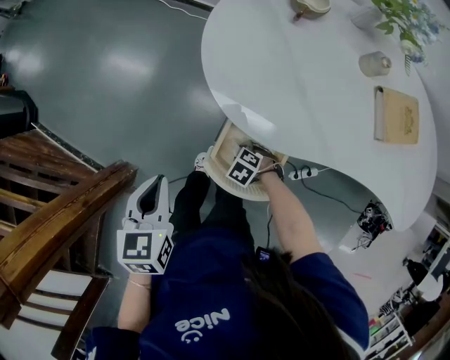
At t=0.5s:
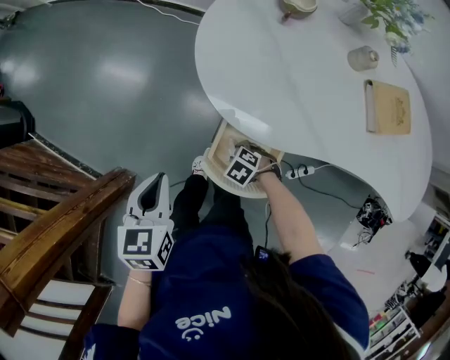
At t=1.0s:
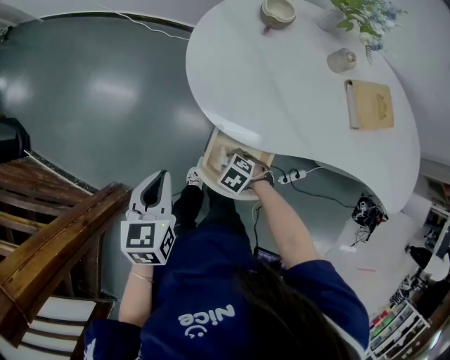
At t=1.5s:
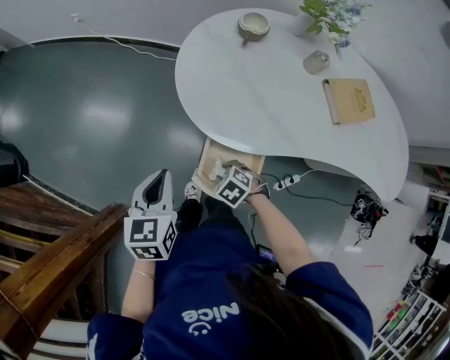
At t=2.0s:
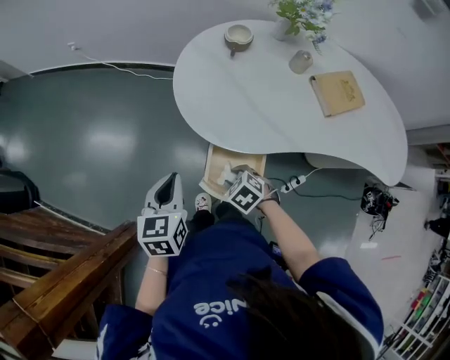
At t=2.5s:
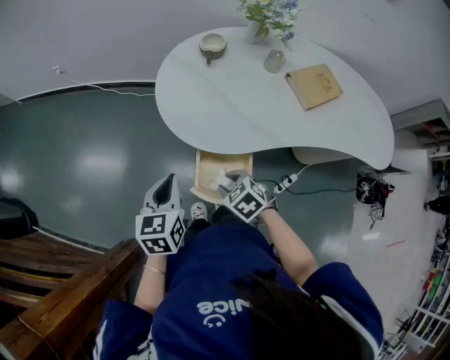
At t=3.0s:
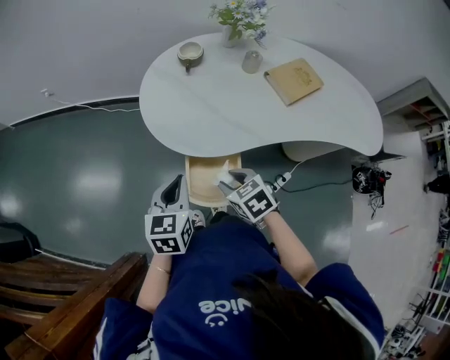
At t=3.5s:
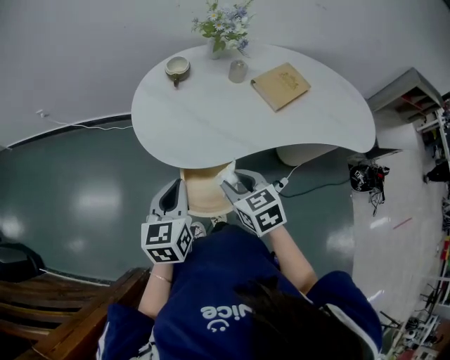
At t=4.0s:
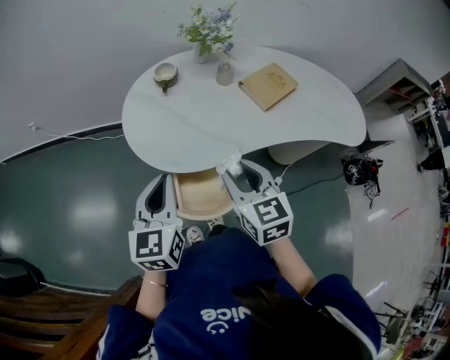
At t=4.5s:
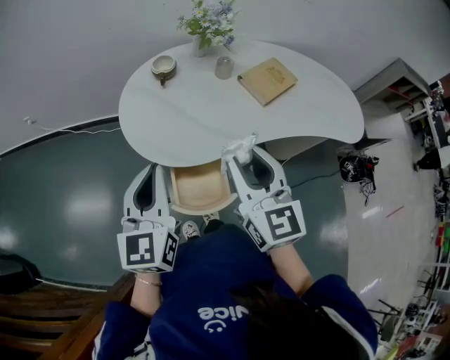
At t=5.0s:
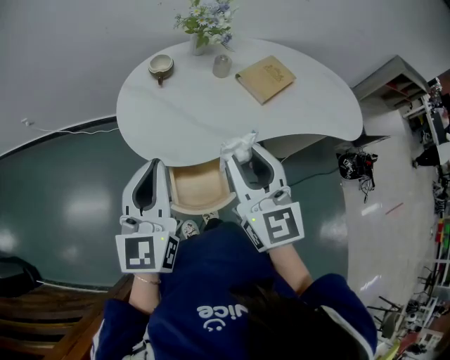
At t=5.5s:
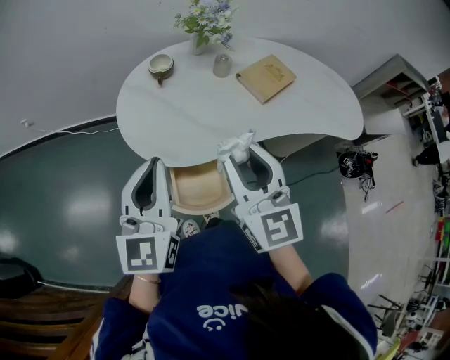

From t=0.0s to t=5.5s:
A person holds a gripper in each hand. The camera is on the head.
From t=0.0s to t=2.0s: The left gripper changes place by some 5 cm. Meanwhile the right gripper is displaced upward by about 20 cm, and rotates roughly 30 degrees.
From t=2.0s to t=3.5s: The right gripper is displaced upward by some 15 cm, and changes its angle by about 50 degrees; the left gripper moves approximately 10 cm.
From t=3.5s to t=5.5s: Both grippers travel together upward, about 15 cm. The left gripper swivels approximately 30 degrees. Meanwhile the right gripper angles its fingers upward, by some 40 degrees.

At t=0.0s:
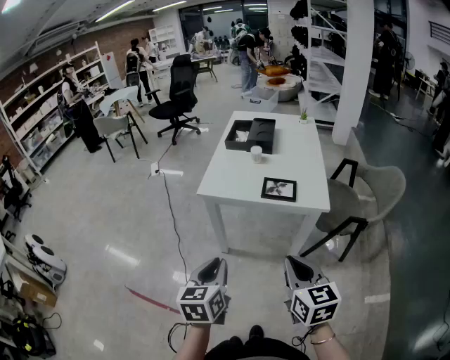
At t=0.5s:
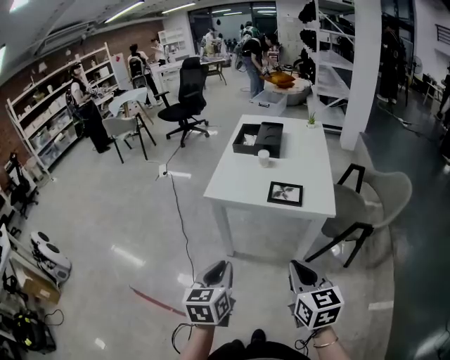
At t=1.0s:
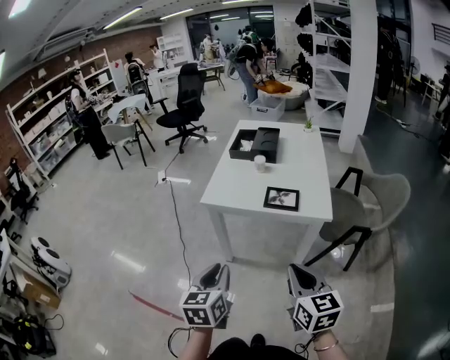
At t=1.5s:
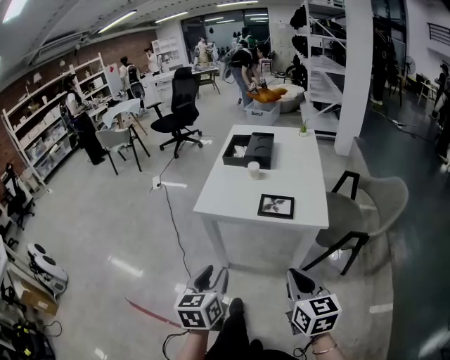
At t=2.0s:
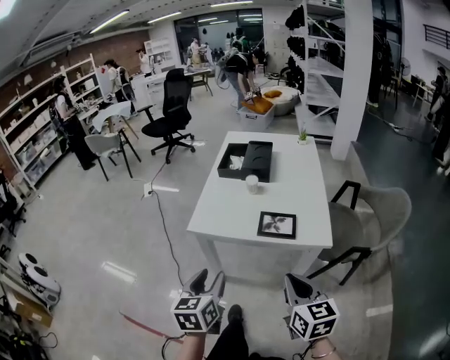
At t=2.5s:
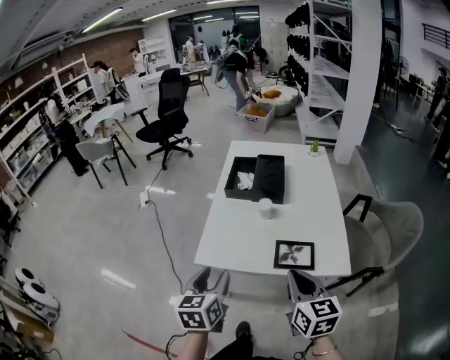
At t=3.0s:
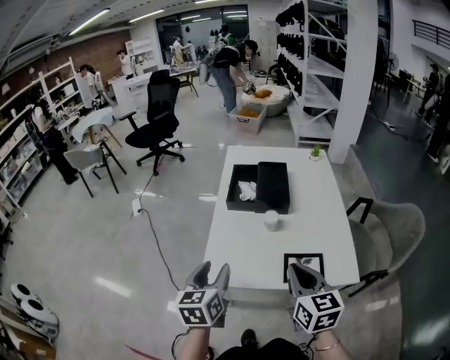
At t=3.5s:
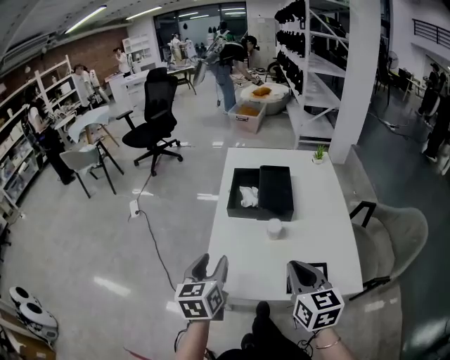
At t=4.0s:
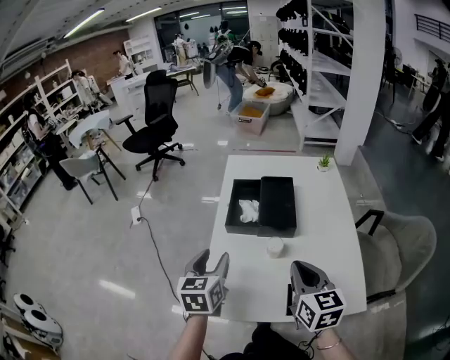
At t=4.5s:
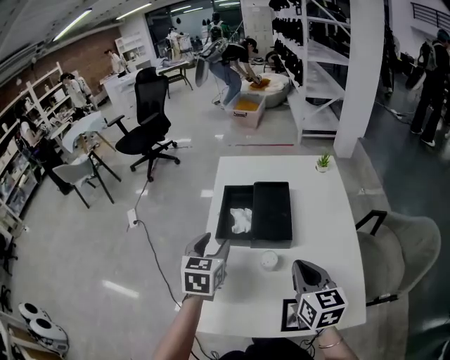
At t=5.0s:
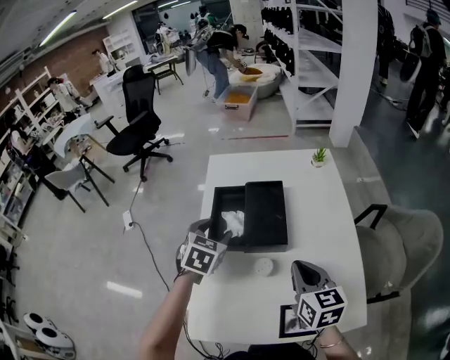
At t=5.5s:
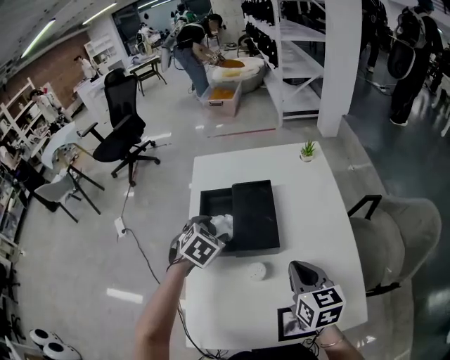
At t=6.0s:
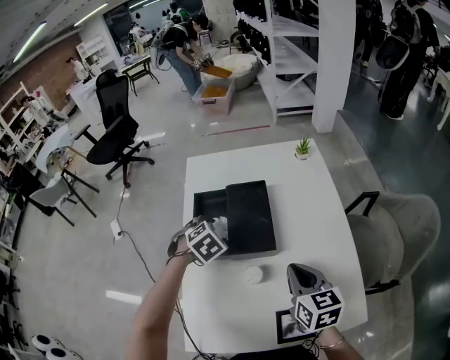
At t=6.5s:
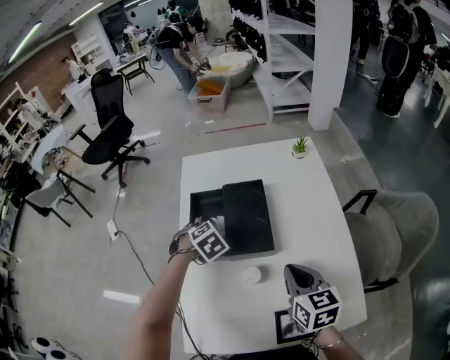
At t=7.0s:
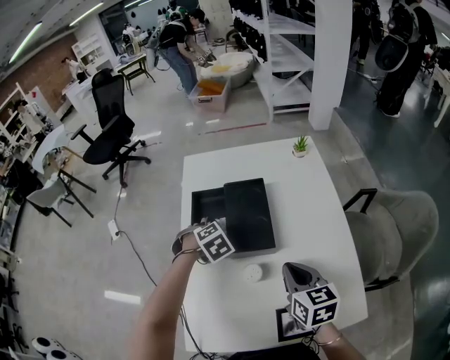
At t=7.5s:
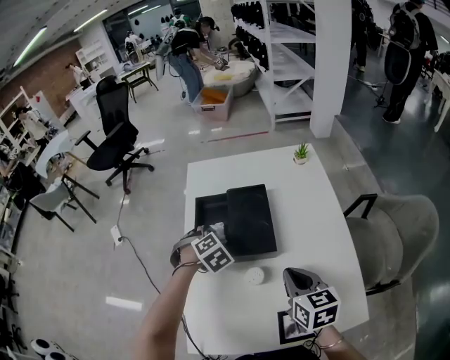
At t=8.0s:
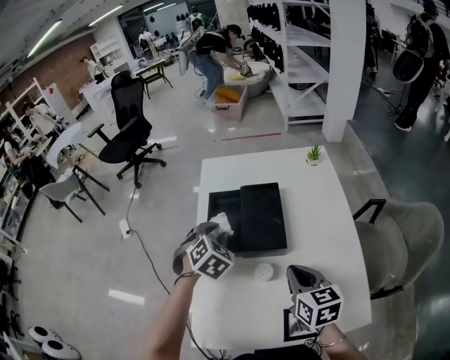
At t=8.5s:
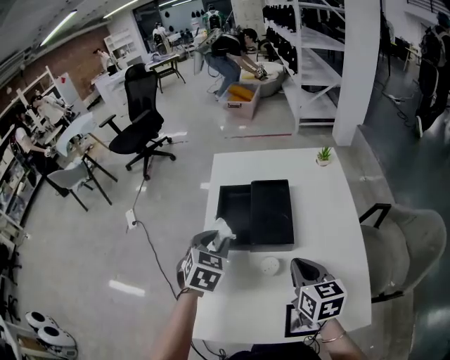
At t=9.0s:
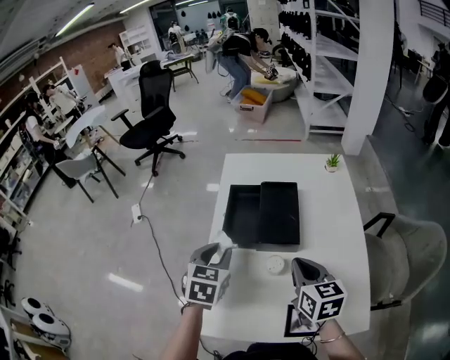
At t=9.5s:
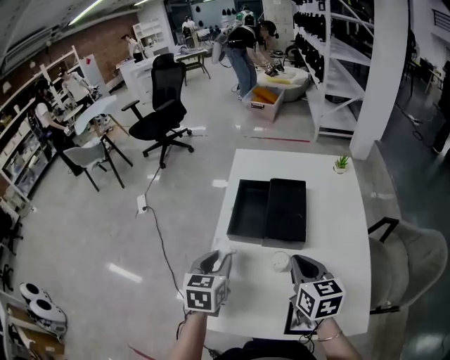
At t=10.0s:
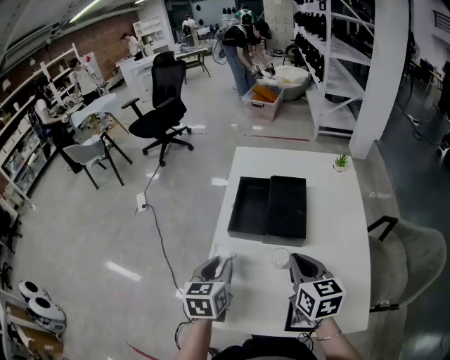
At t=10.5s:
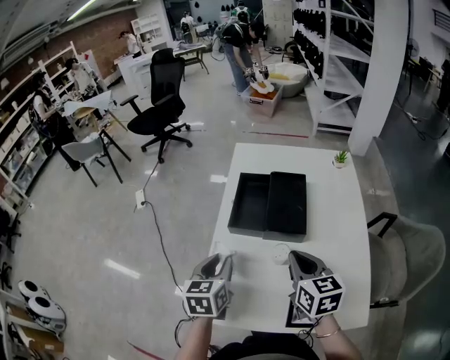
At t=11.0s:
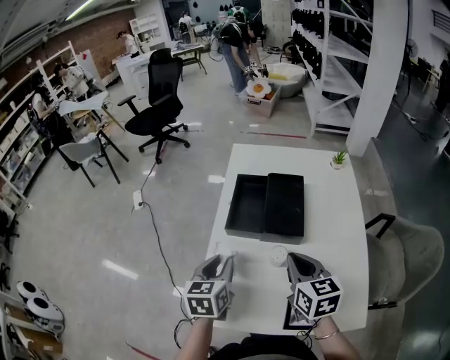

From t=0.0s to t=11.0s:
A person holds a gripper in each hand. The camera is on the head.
From t=0.0s to t=2.0s: Both grippers move forward, some 10 cm. The left gripper opens up.
From t=2.0s to t=3.5s: Both grippers travel together forward, approximately 30 cm.
From t=3.5s to t=5.5s: The left gripper travels forward by some 30 cm, and angles its fingers downward, by about 30 degrees, while the right gripper moves forward and to the right, some 20 cm.
From t=5.5s to t=7.5s: The left gripper turns by approximately 20 degrees, and closes.
From t=7.5s to t=9.0s: The left gripper heads backward, upward and to the left, covering roughly 15 cm, and rotates around the line of its fingers by about 50 degrees, counterclockwise from behind.
From t=9.0s to t=11.0s: The left gripper is displaced backward by roughly 5 cm, and rotates about 20 degrees.

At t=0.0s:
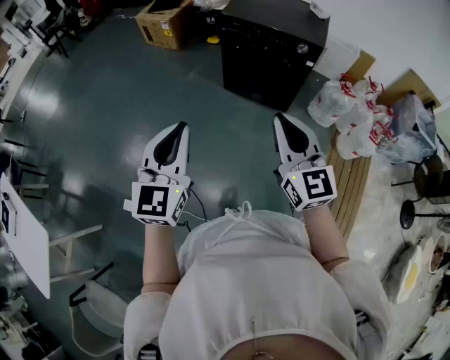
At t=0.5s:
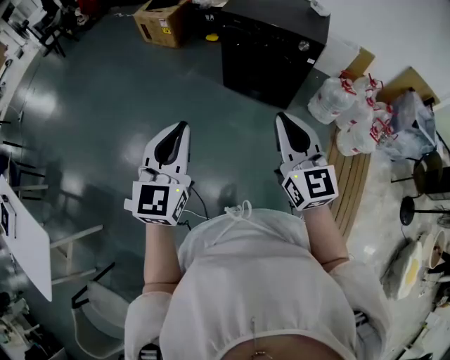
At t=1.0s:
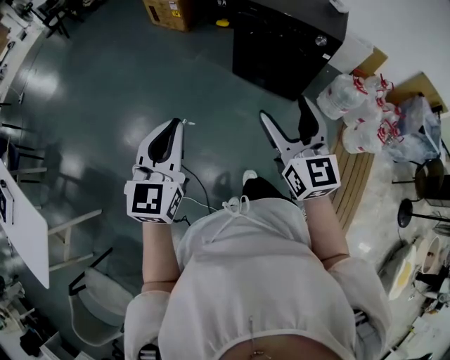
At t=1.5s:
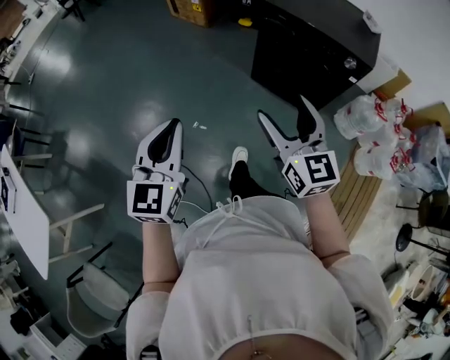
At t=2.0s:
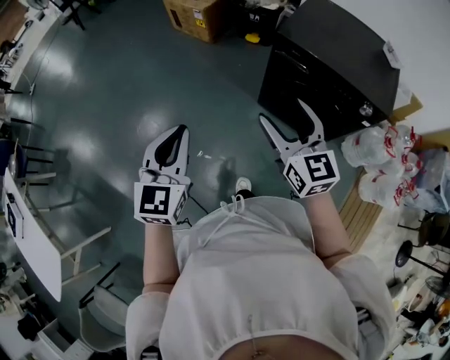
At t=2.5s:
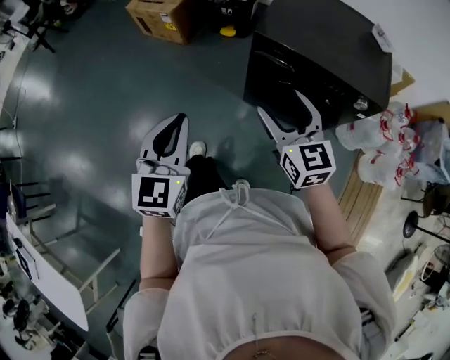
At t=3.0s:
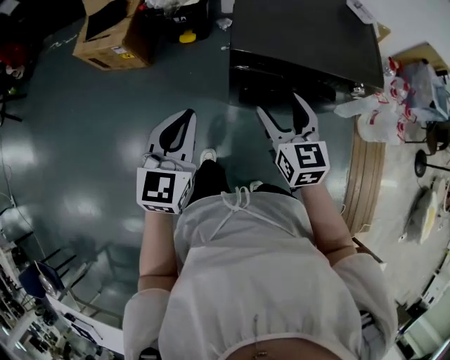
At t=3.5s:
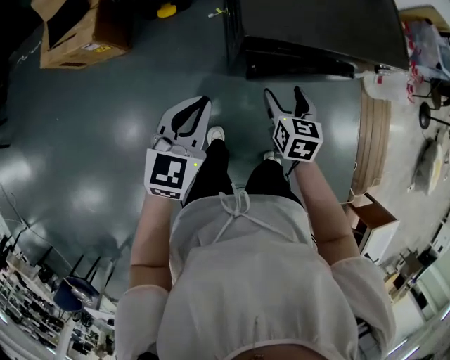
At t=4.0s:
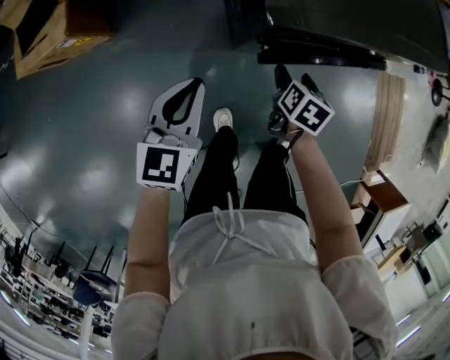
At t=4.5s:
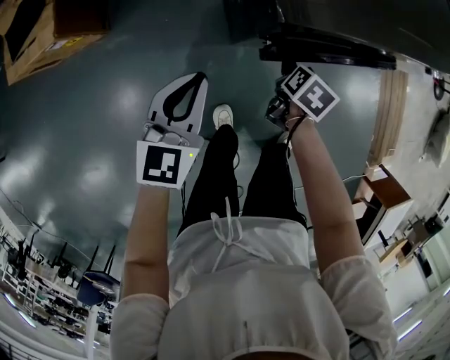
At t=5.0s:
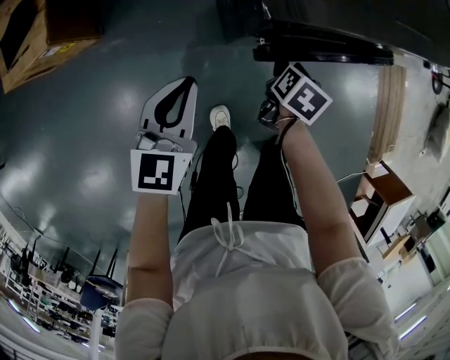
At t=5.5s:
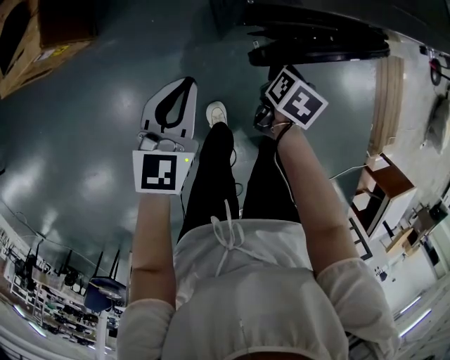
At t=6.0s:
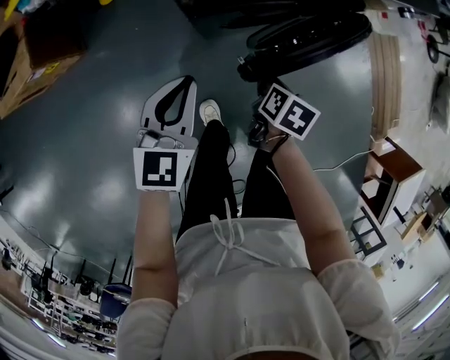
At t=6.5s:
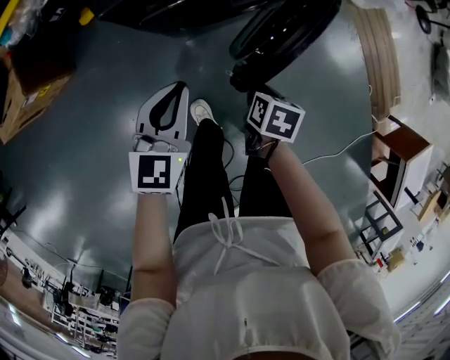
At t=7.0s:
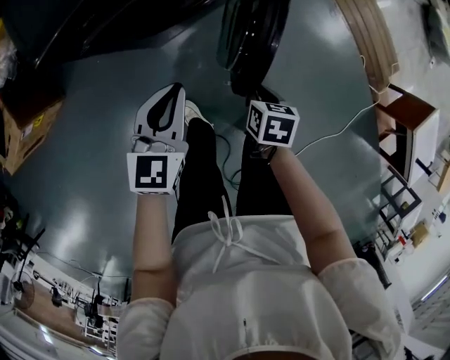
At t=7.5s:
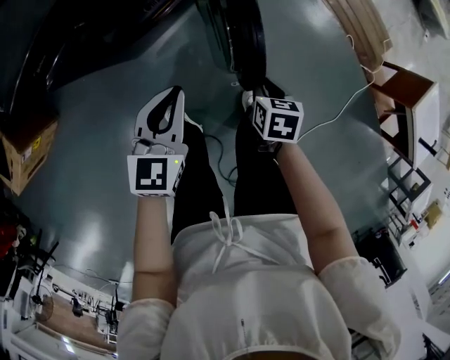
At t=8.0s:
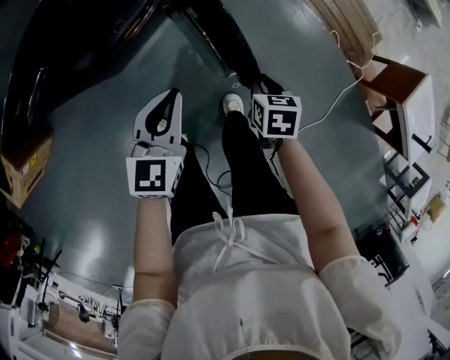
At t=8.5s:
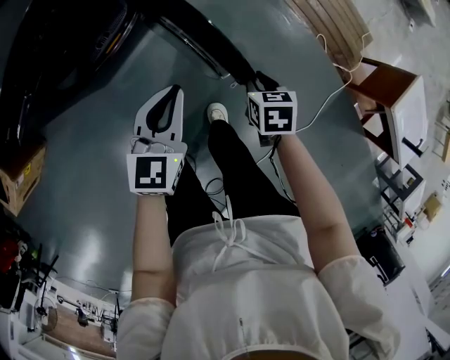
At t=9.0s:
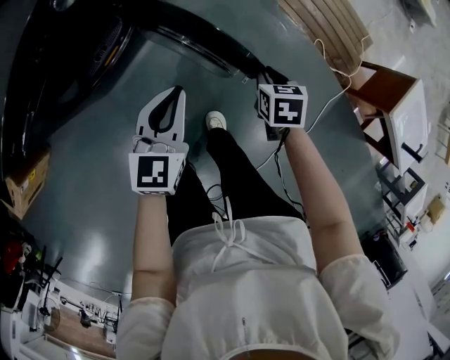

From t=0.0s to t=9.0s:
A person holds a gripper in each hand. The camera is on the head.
From t=0.0s to t=2.0s: The two grippers go approximately 40 cm forward. The right gripper opens.
From t=2.0s to t=4.5s: The right gripper travels downward by about 50 cm, and tips its fingers downward by approximately 50 degrees, while the left gripper moves some 60 cm, and rotates some 60 degrees.
From t=4.5s to t=7.0s: The left gripper is displaced to the right by some 30 cm. The right gripper is displaced to the right and backward by approximately 30 cm, and closes up.
From t=7.0s to t=9.0s: The right gripper shifts roughly 40 cm to the right and forward; the left gripper goes roughly 35 cm to the right.

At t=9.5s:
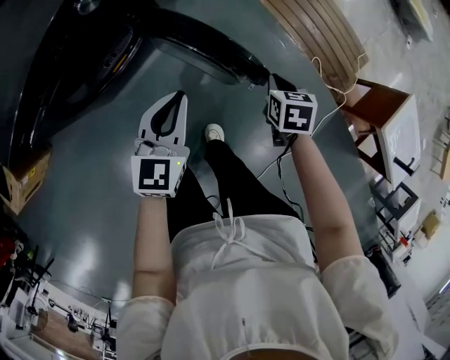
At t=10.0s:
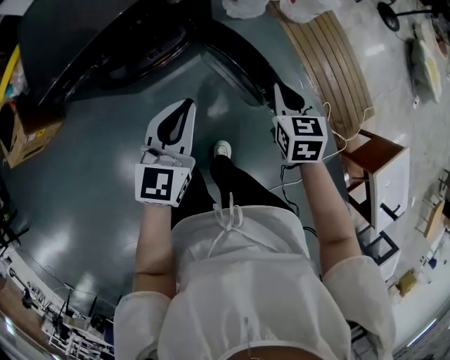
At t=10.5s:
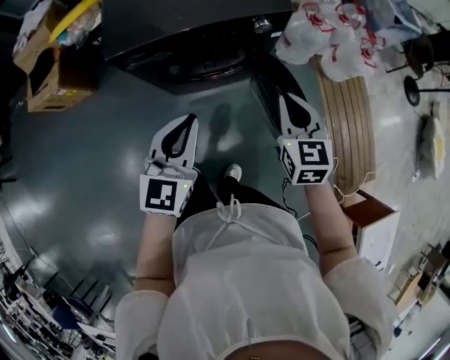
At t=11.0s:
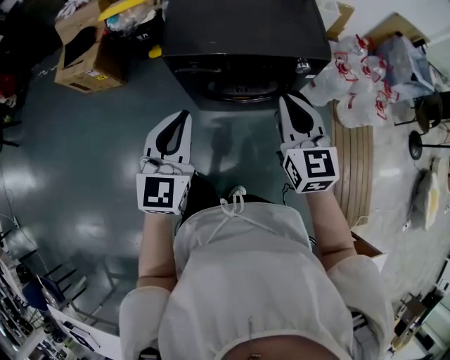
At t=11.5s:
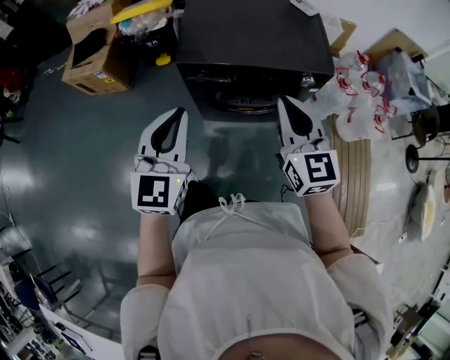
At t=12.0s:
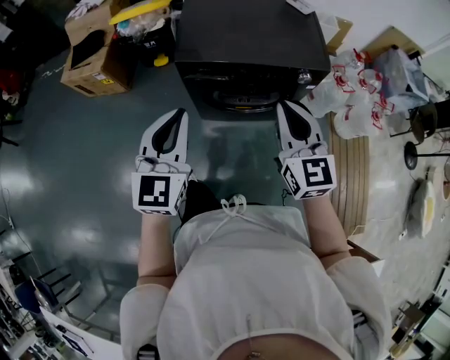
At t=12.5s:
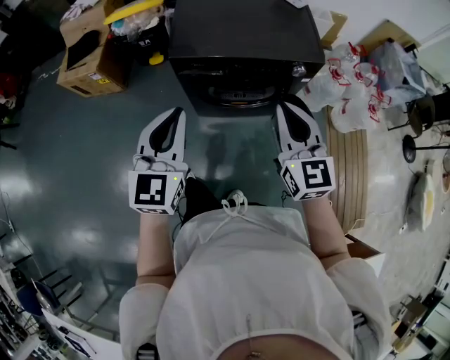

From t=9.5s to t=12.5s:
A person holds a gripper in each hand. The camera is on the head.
From t=9.5s to t=11.0s: The right gripper is displaced upward by roughly 40 cm, and tilts its fingers some 50 degrees upward, while the left gripper ends up approximately 50 cm from where it was, and turns by approximately 50 degrees.
From t=11.0s to t=12.5s: The left gripper moves about 5 cm; the right gripper changes place by about 5 cm.
